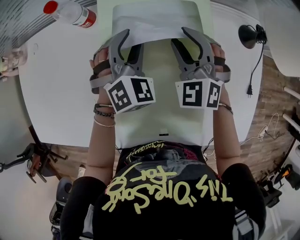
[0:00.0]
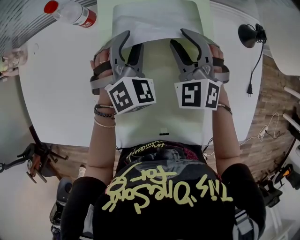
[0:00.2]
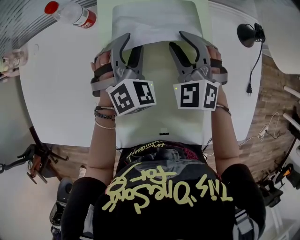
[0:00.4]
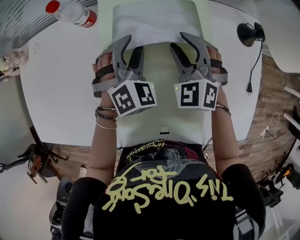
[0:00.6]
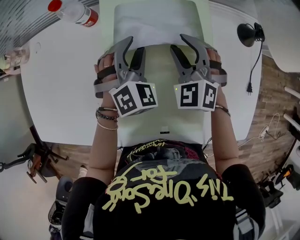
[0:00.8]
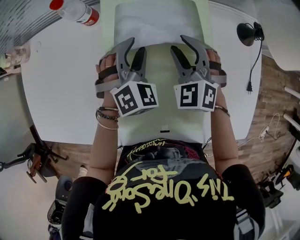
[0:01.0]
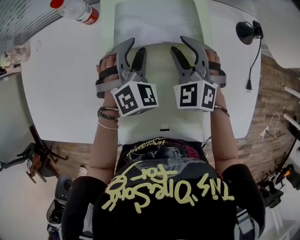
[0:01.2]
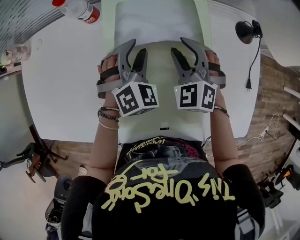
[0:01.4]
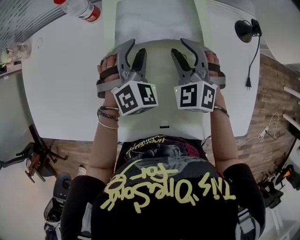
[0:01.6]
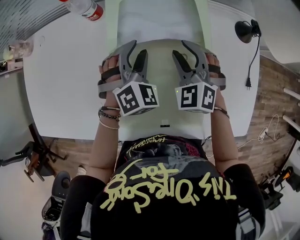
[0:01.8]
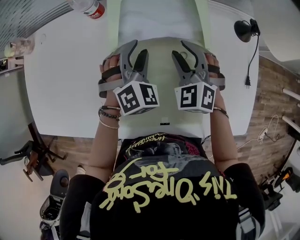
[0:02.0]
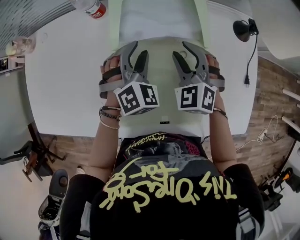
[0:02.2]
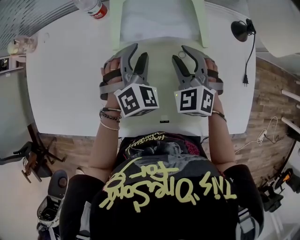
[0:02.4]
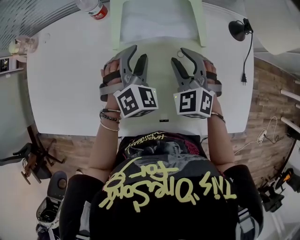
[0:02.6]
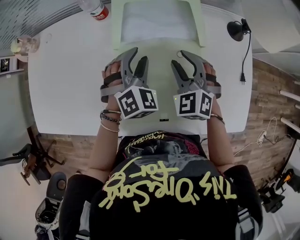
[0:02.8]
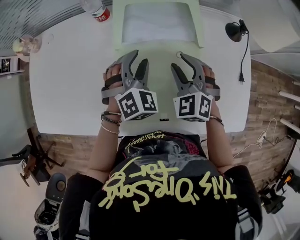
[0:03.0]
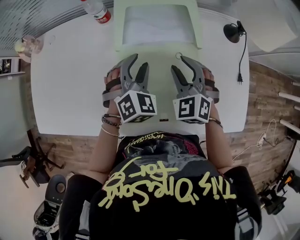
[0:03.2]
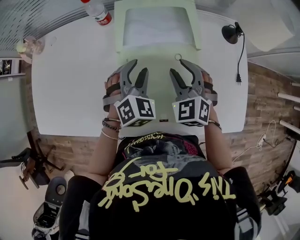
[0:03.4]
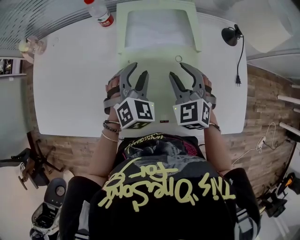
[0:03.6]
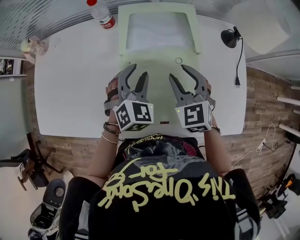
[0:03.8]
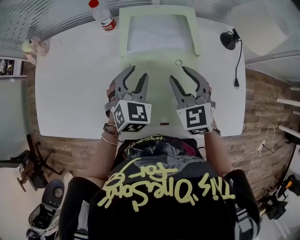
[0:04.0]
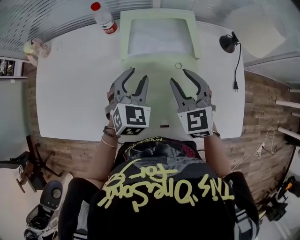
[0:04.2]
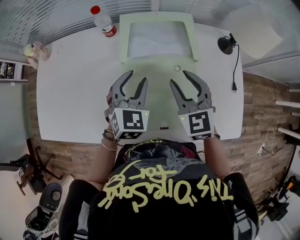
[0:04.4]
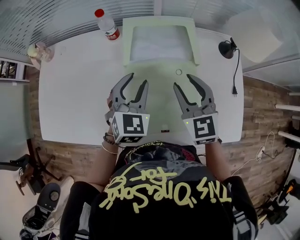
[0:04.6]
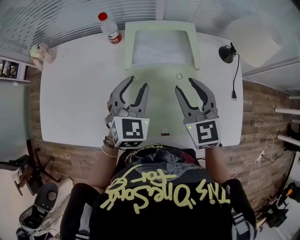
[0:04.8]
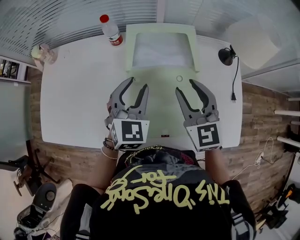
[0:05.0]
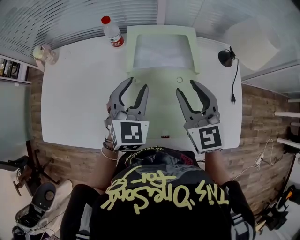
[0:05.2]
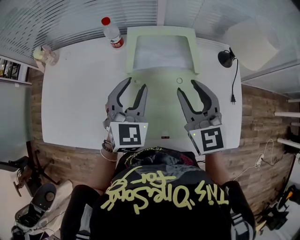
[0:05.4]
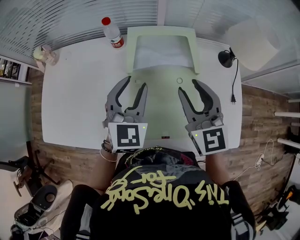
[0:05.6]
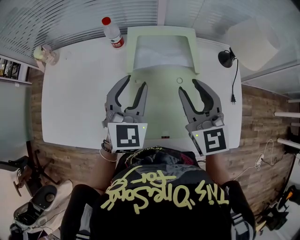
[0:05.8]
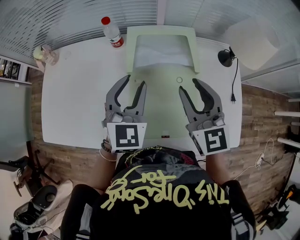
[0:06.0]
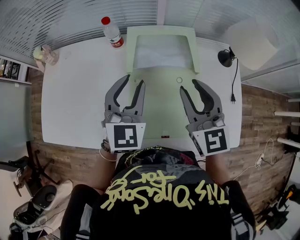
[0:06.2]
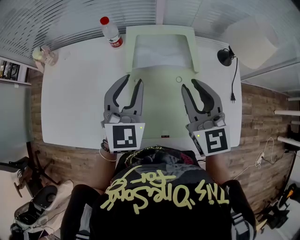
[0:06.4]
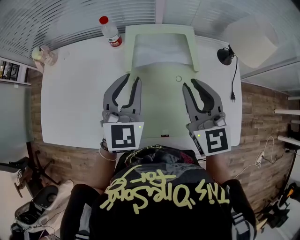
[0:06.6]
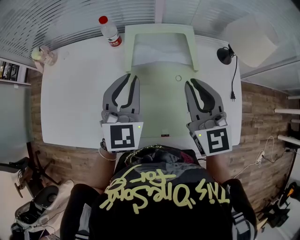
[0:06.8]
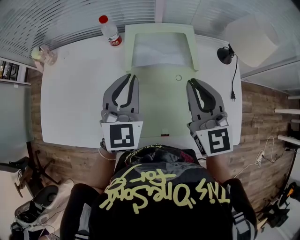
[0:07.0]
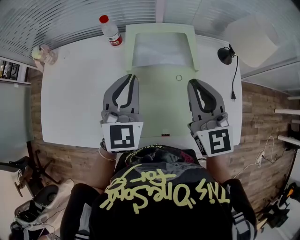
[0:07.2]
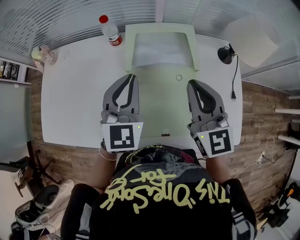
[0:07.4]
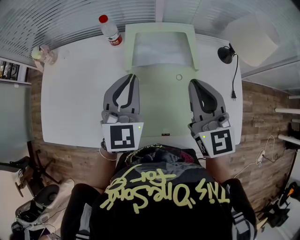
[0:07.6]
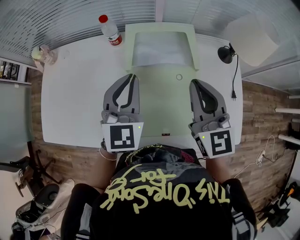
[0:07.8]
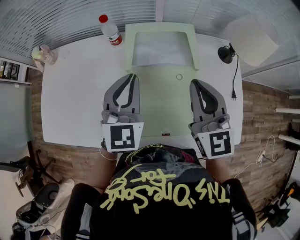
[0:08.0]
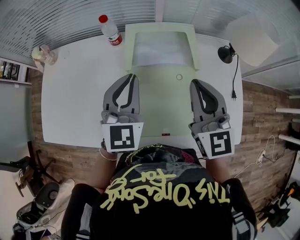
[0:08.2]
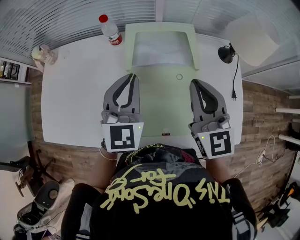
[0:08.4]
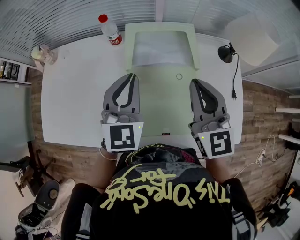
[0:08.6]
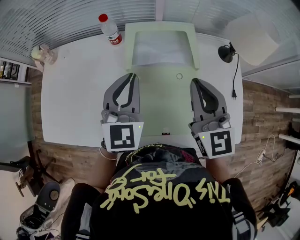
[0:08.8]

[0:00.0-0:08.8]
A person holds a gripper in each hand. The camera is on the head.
0.0 to 1.4 s: The grippers move only a little.
1.4 to 3.0 s: The grippers both shift backward by approximately 5 cm.
3.0 to 4.4 s: The left gripper changes place by some 5 cm, and turns by approximately 30 degrees, while the right gripper heads upward, covering some 5 cm, and swivels approximately 30 degrees.
4.4 to 5.8 s: Both grippers travel together upward, some 10 cm.
5.8 to 7.4 s: The right gripper closes up; the left gripper closes its fingers.
7.4 to 8.8 s: The grippers stay close to where they were, moving slightly.

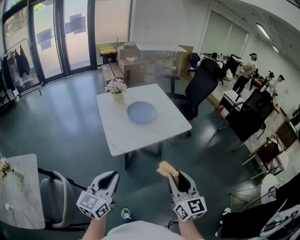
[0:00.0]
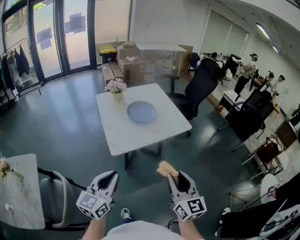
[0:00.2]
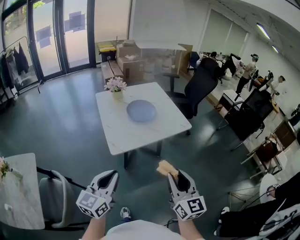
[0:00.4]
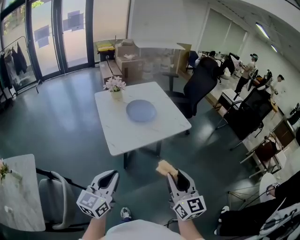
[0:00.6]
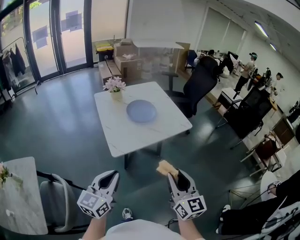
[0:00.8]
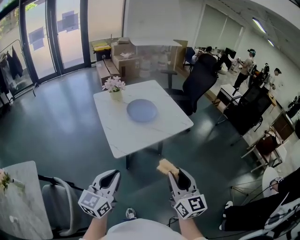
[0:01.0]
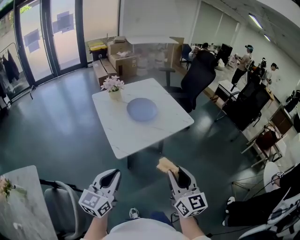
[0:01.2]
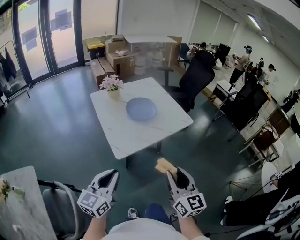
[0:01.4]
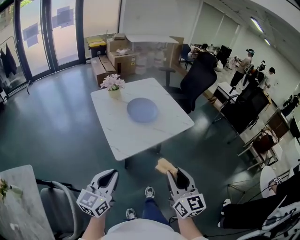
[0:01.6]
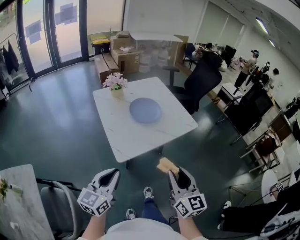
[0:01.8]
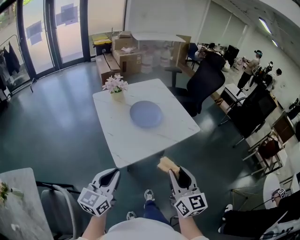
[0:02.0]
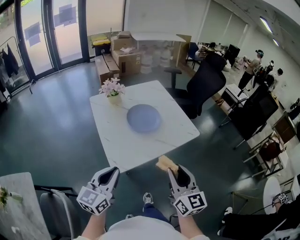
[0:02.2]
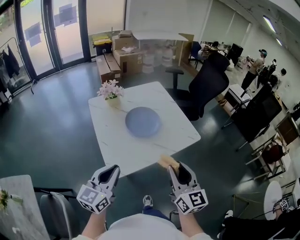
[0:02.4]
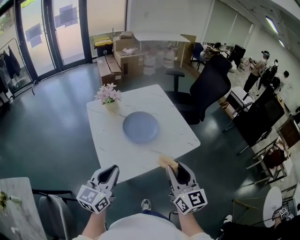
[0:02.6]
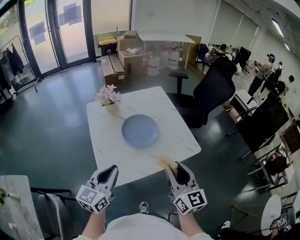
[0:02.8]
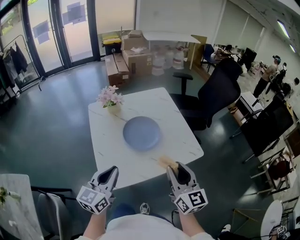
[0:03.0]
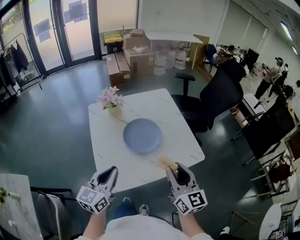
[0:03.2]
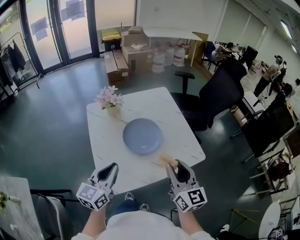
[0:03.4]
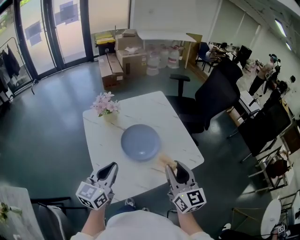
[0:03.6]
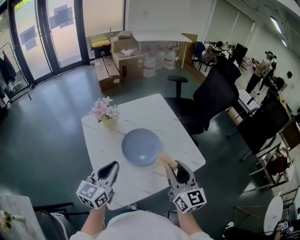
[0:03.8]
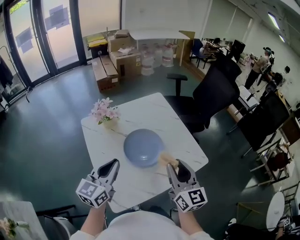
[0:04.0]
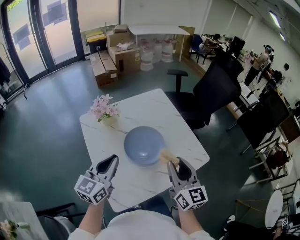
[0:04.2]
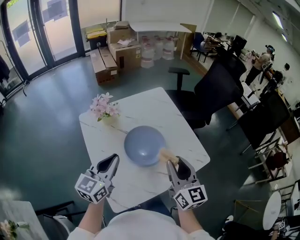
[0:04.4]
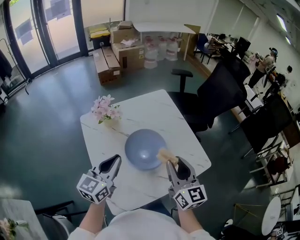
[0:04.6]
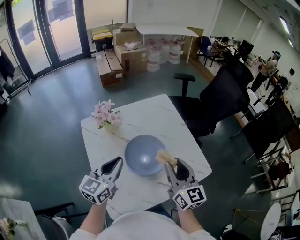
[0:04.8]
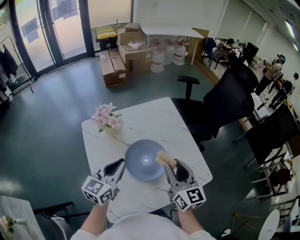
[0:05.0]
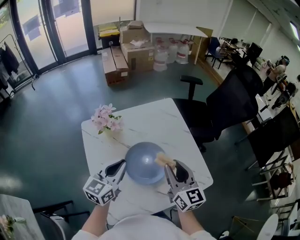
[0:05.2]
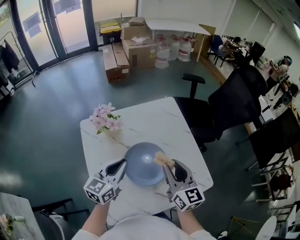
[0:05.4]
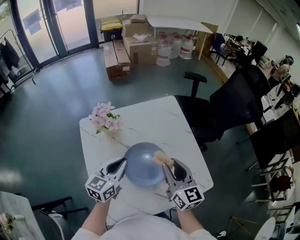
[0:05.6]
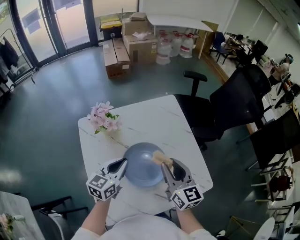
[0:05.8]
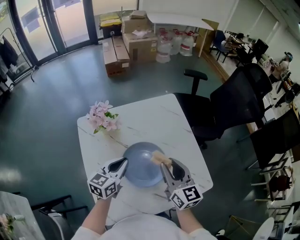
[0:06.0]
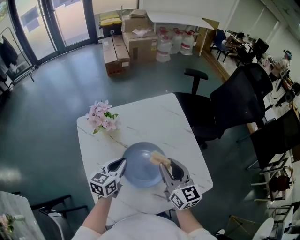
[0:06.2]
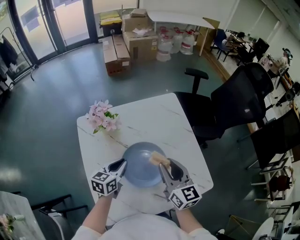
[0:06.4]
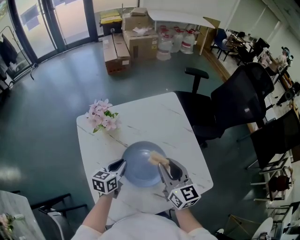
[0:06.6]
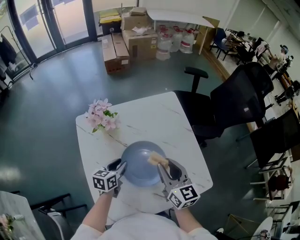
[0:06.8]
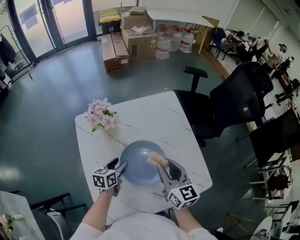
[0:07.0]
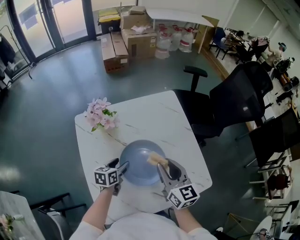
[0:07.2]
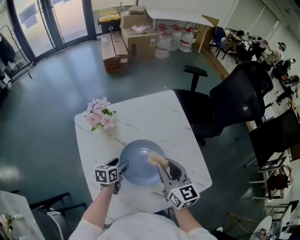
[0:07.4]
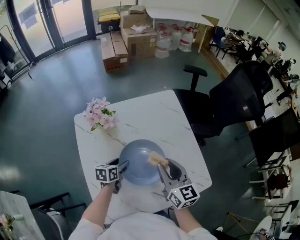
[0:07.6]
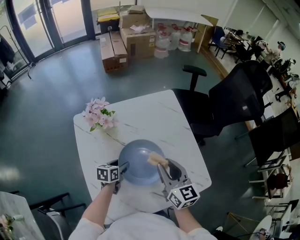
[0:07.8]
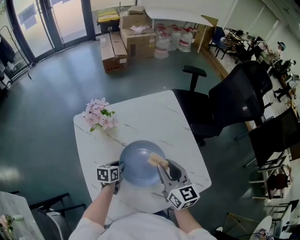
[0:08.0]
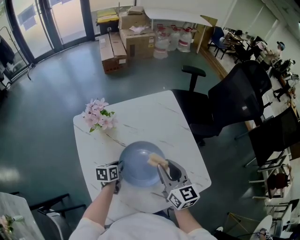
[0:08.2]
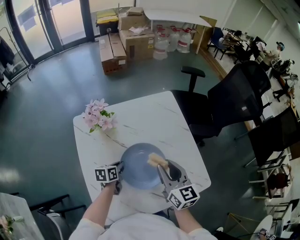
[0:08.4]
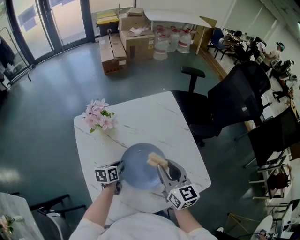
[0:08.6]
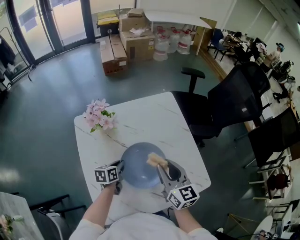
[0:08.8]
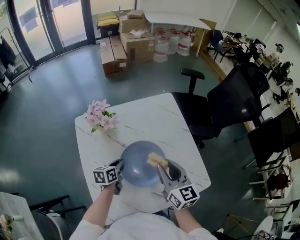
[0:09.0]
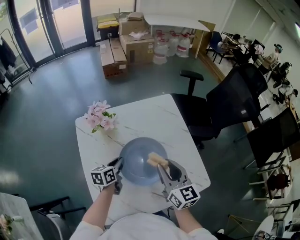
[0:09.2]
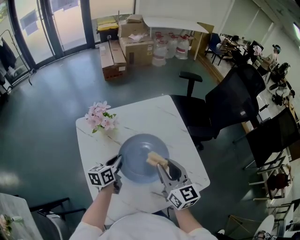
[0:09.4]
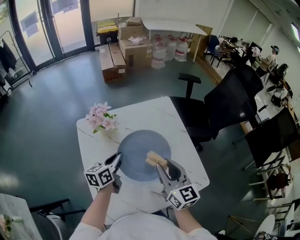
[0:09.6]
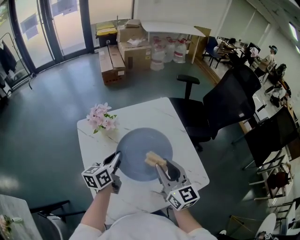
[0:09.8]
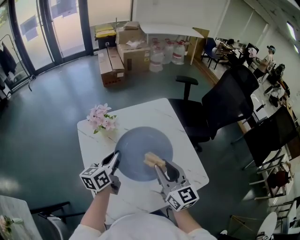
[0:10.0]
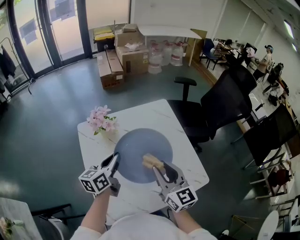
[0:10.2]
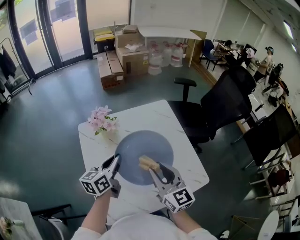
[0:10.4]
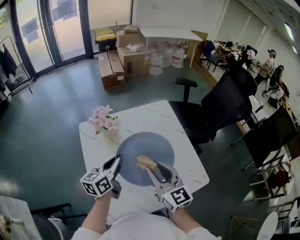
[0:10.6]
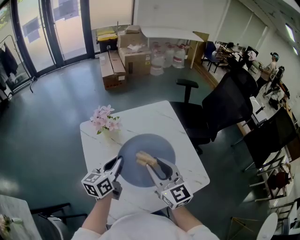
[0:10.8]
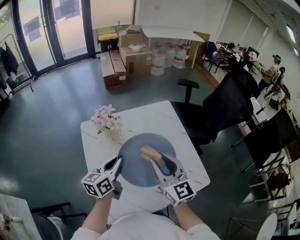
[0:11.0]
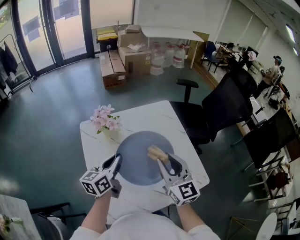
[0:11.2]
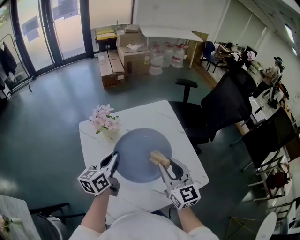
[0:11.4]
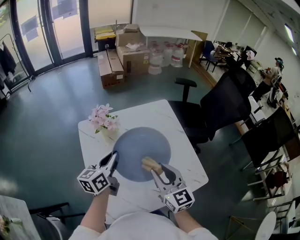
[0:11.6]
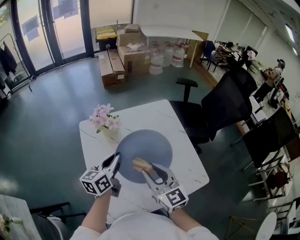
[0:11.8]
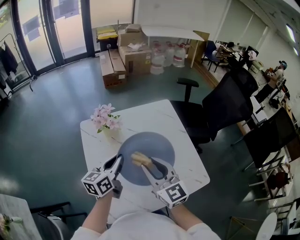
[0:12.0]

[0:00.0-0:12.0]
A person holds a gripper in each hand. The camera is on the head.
0.0 to 1.6 s: The right gripper travels to the left by roughly 10 cm, while the left gripper heads to the left and forward, covering approximately 10 cm.
1.6 to 3.0 s: Both grippers travel together forward, about 30 cm.
3.0 to 4.4 s: The right gripper moves forward and to the left, approximately 15 cm, while the left gripper travels forward by roughly 20 cm.
4.4 to 6.0 s: The left gripper heads forward and downward, covering about 15 cm, while the right gripper goes about 15 cm forward.
6.0 to 7.6 s: The left gripper shifts some 15 cm downward, turns by approximately 30 degrees, and opens up.
7.6 to 9.0 s: The left gripper closes its fingers.
9.0 to 10.4 s: The right gripper shifts about 10 cm backward and upward. The left gripper is displaced upward by some 20 cm, and rotates about 30 degrees.
10.4 to 12.0 s: The grippers move only a little.

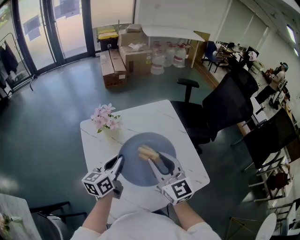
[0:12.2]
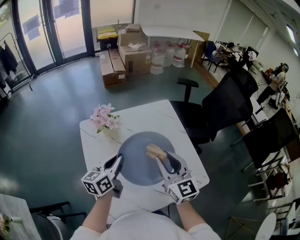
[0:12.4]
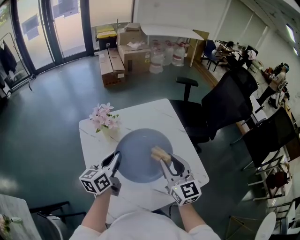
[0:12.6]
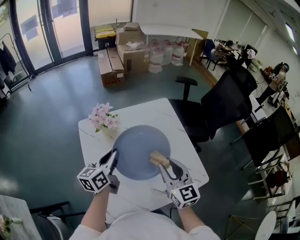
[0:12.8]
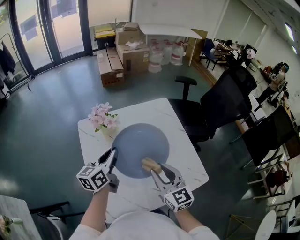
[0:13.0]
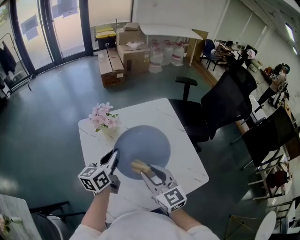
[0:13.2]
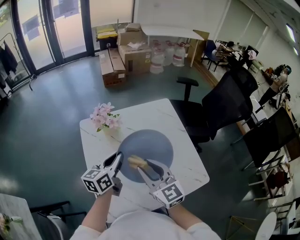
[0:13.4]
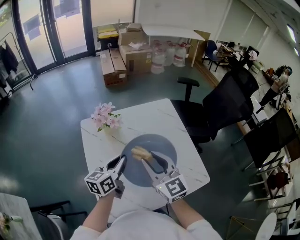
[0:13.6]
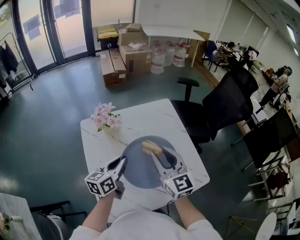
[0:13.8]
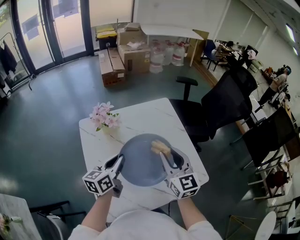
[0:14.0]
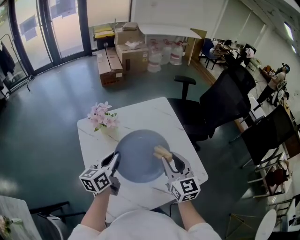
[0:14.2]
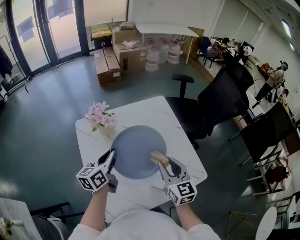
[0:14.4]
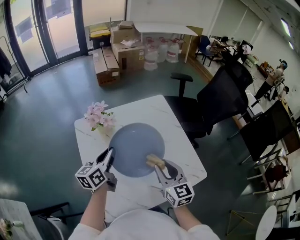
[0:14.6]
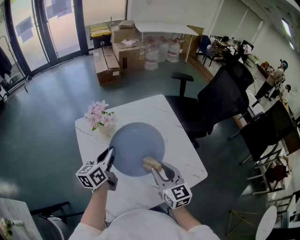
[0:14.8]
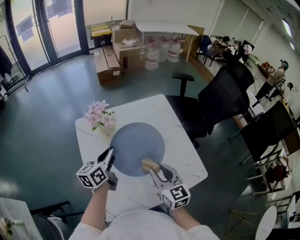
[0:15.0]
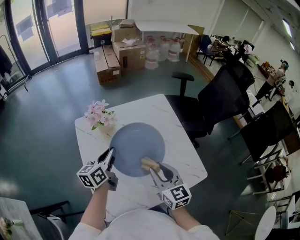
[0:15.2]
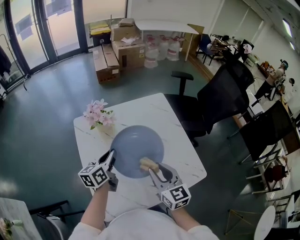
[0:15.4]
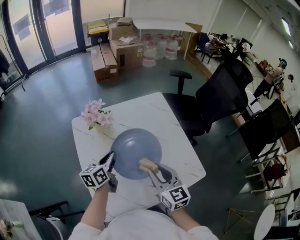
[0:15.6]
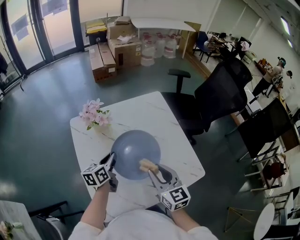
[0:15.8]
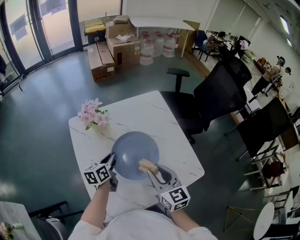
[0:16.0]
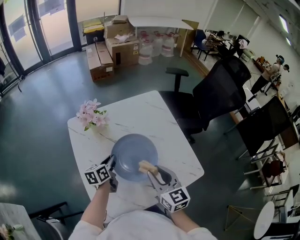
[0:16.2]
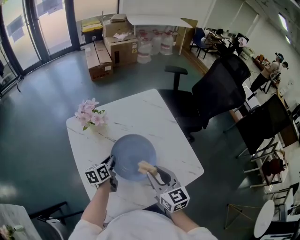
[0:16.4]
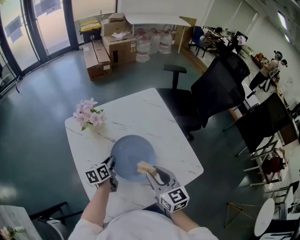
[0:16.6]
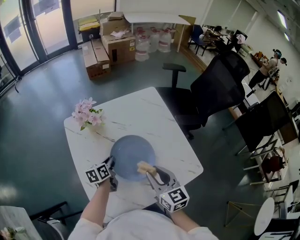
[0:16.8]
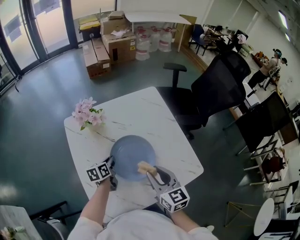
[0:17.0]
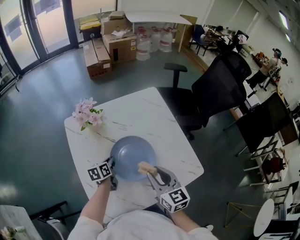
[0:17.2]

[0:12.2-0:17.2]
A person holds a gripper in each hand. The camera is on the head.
12.2 to 13.8 s: The right gripper swings left and right, roughly 10 cm each way, with 2 reversals.
13.8 to 15.6 s: The right gripper moves downward and backward, roughly 10 cm, while the left gripper moves downward, some 5 cm.
15.6 to 17.2 s: The left gripper travels downward by some 15 cm, and rotates about 20 degrees.
